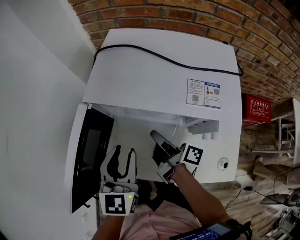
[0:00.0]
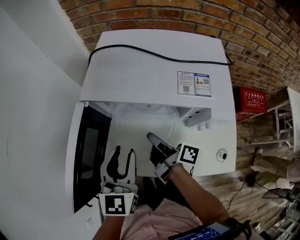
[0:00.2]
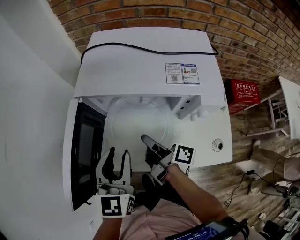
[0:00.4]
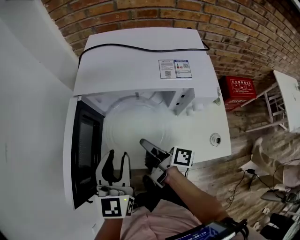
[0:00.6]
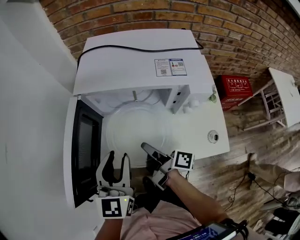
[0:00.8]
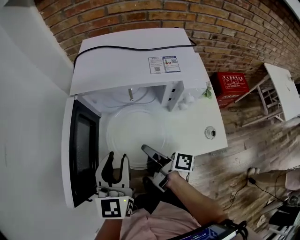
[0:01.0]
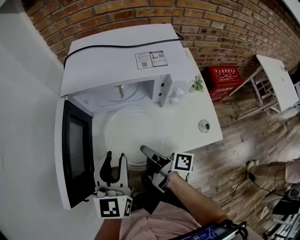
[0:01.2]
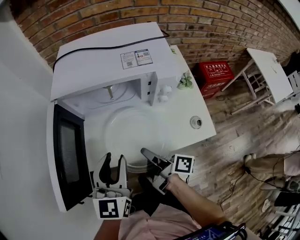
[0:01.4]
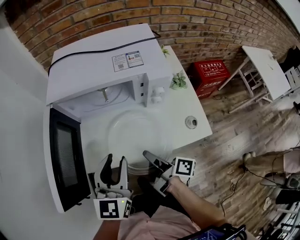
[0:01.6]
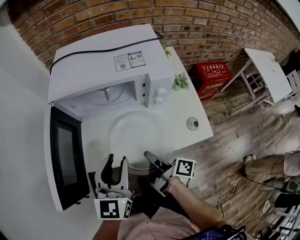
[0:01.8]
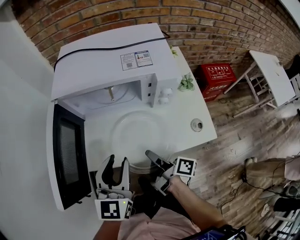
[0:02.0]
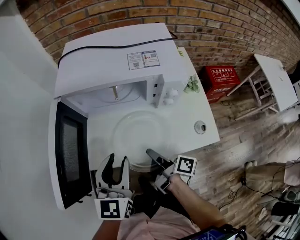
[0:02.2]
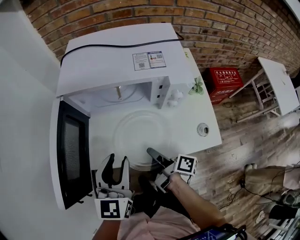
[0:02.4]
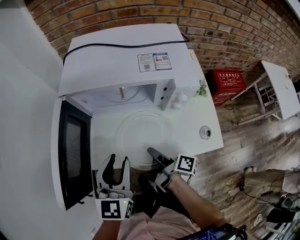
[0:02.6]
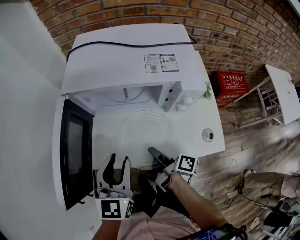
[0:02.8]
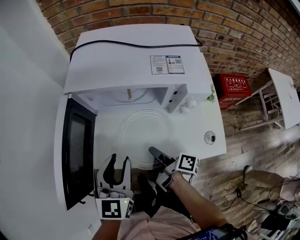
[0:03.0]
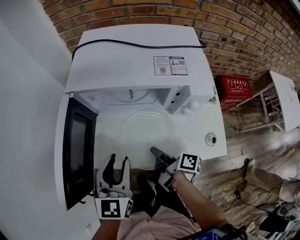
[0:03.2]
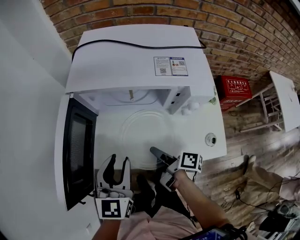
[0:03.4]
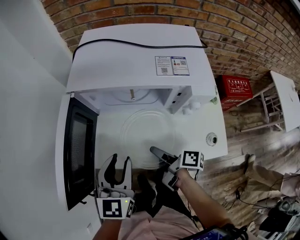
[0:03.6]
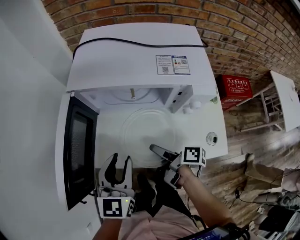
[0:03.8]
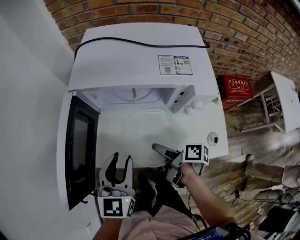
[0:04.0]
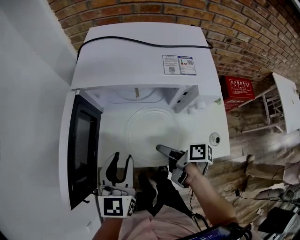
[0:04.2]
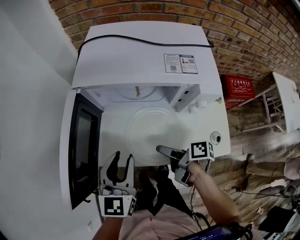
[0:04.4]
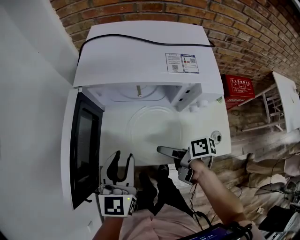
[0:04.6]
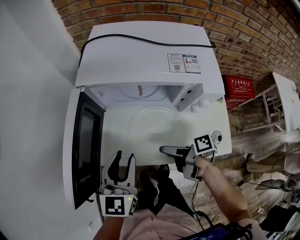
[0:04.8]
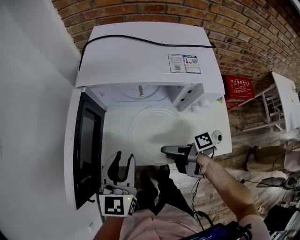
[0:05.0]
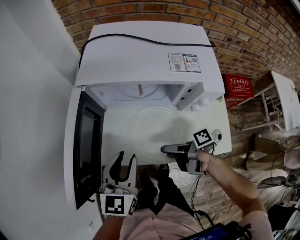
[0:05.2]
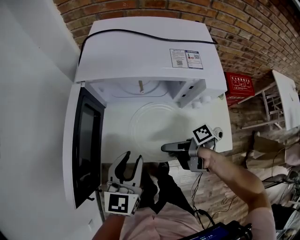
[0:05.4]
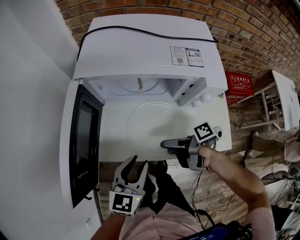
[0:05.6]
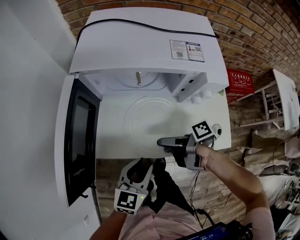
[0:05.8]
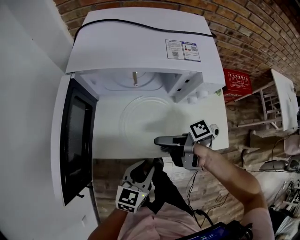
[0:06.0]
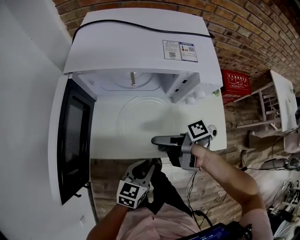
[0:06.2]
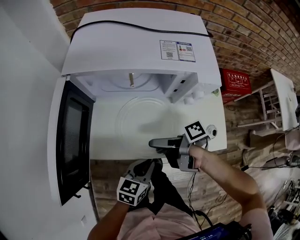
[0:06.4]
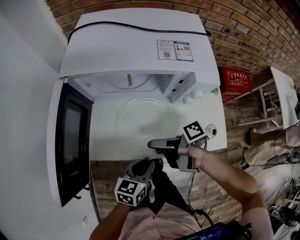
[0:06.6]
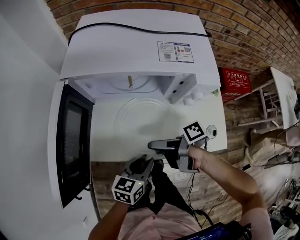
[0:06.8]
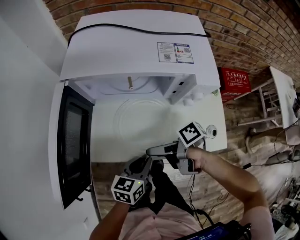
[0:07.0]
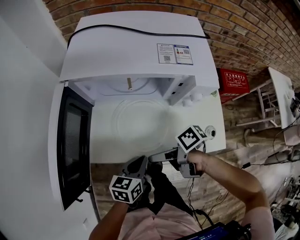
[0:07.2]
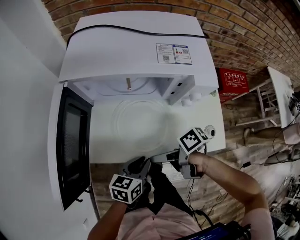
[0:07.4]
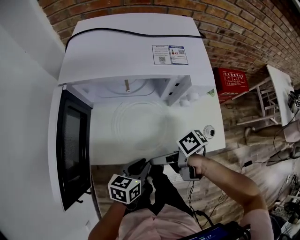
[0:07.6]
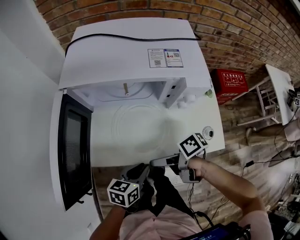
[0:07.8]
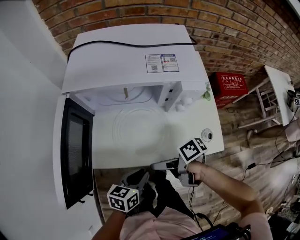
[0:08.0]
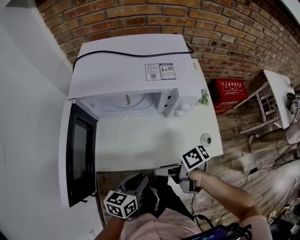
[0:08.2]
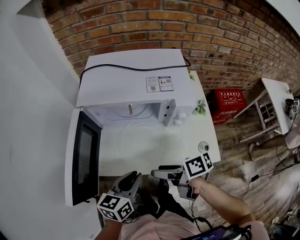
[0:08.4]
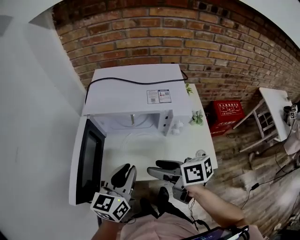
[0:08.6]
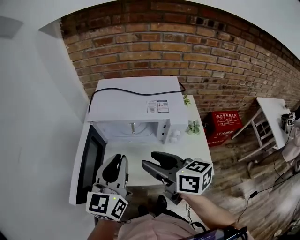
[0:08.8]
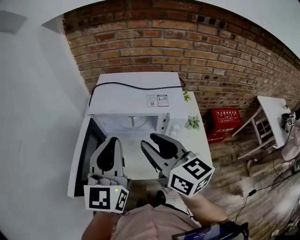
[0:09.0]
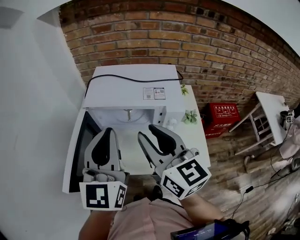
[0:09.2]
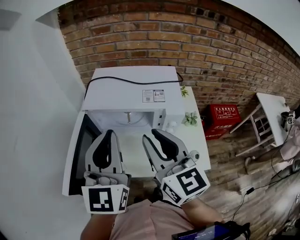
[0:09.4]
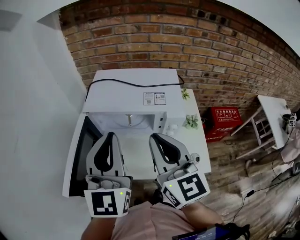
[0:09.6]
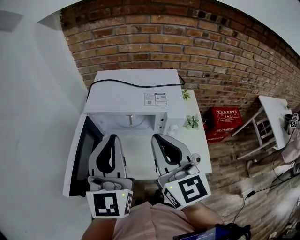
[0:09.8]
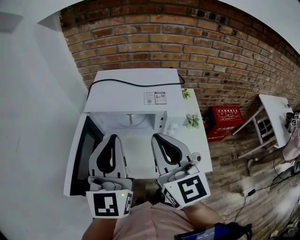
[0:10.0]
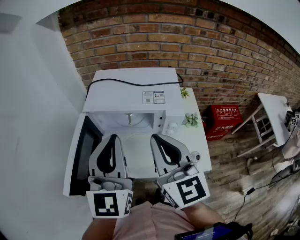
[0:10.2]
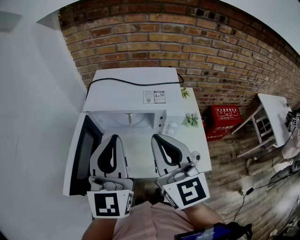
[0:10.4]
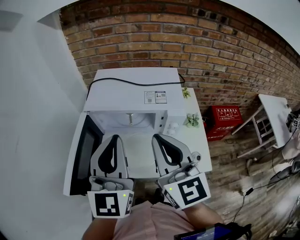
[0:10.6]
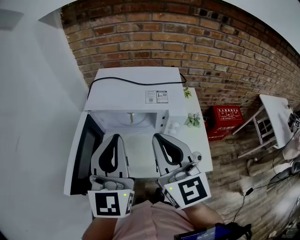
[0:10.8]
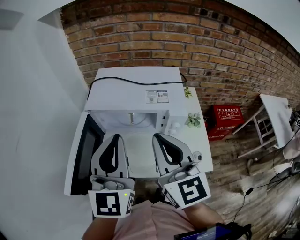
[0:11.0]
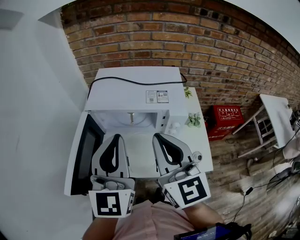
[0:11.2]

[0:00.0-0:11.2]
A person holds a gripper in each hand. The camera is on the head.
0:00.0 to 0:01.6: The right gripper moves backward, some 20 cm. The left gripper heads backward and to the right, covering roughly 15 cm, and turns by approximately 20 degrees.
0:01.6 to 0:03.2: The right gripper goes some 5 cm forward. The left gripper shifts by approximately 5 cm.
0:03.2 to 0:04.8: The right gripper changes its angle by roughly 30 degrees, and opens its fingers.
0:04.8 to 0:06.4: The left gripper travels downward, backward and to the right by roughly 20 cm, swivels about 40 degrees, and closes its fingers.
0:08.0 to 0:09.6: The two grippers go approximately 35 cm upward. The left gripper tilts its fingers some 40 degrees upward. The right gripper swivels about 100 degrees, and closes.
0:09.6 to 0:11.2: The grippers stay close to where they were, moving slightly.

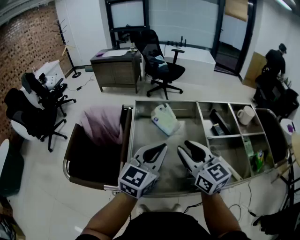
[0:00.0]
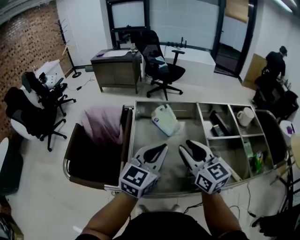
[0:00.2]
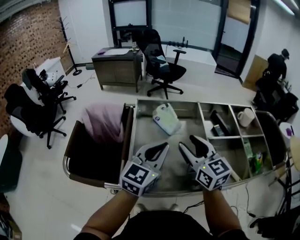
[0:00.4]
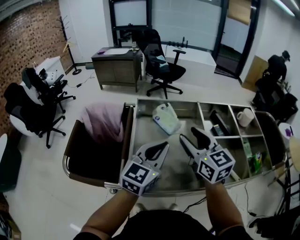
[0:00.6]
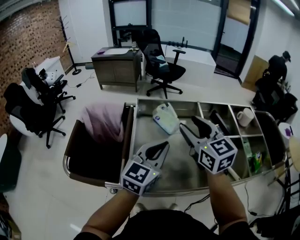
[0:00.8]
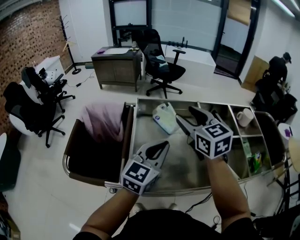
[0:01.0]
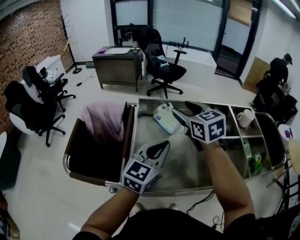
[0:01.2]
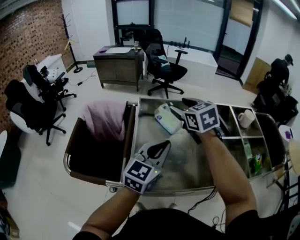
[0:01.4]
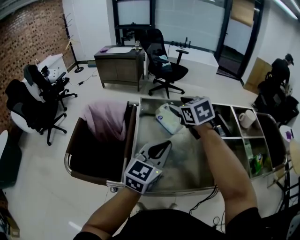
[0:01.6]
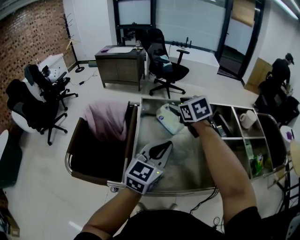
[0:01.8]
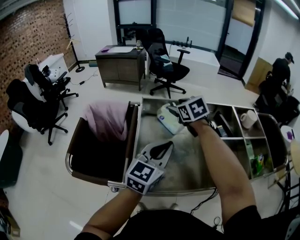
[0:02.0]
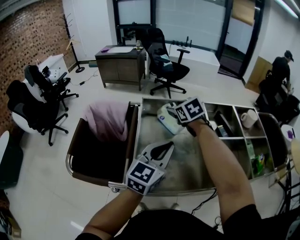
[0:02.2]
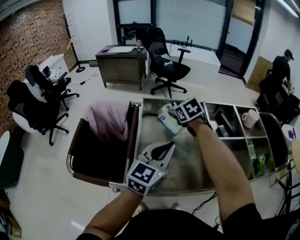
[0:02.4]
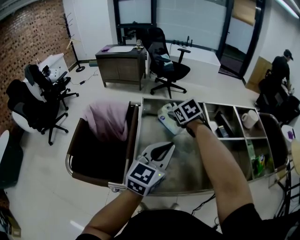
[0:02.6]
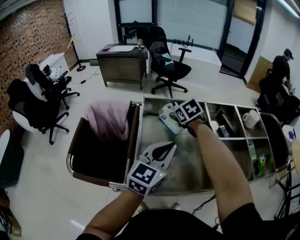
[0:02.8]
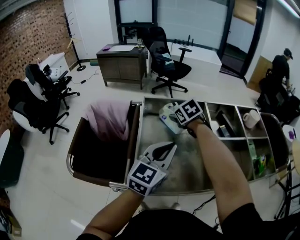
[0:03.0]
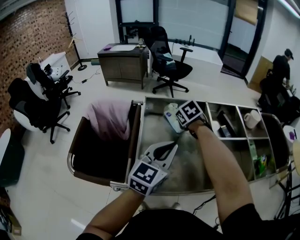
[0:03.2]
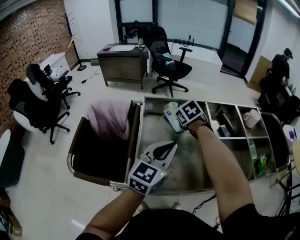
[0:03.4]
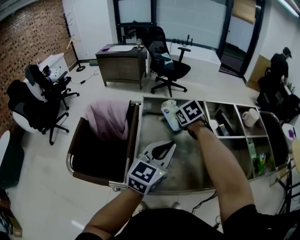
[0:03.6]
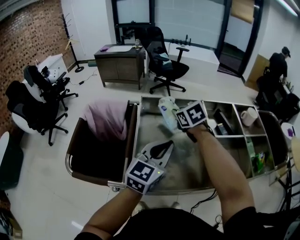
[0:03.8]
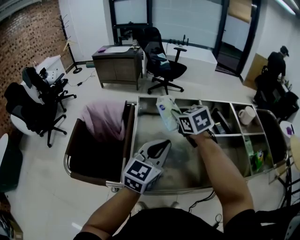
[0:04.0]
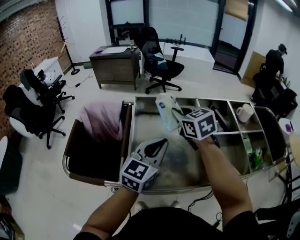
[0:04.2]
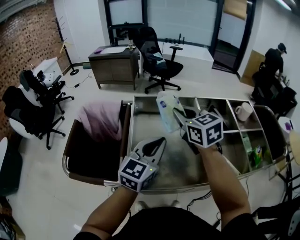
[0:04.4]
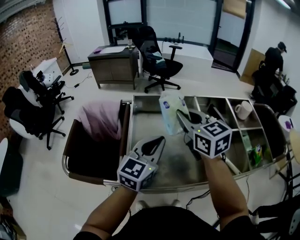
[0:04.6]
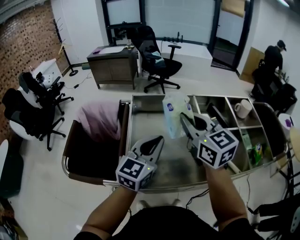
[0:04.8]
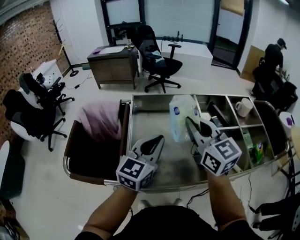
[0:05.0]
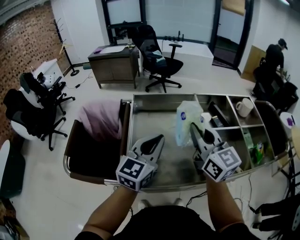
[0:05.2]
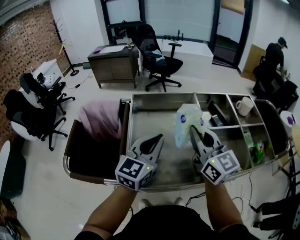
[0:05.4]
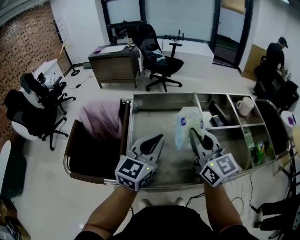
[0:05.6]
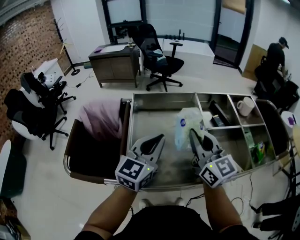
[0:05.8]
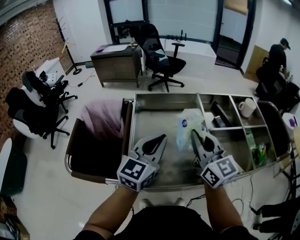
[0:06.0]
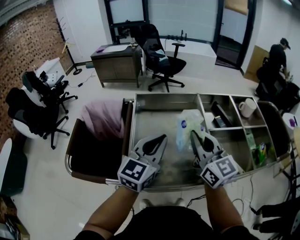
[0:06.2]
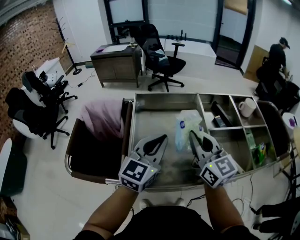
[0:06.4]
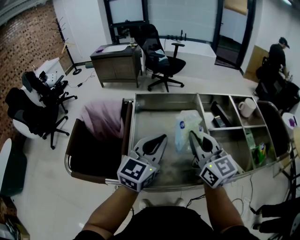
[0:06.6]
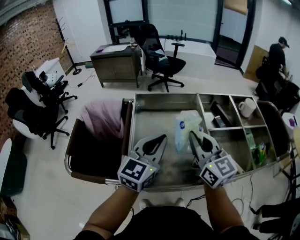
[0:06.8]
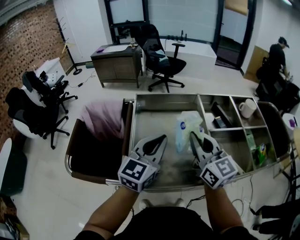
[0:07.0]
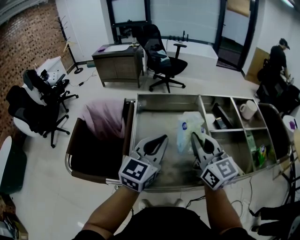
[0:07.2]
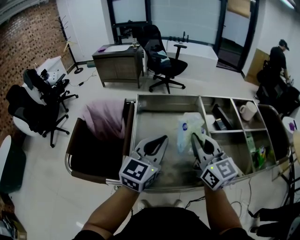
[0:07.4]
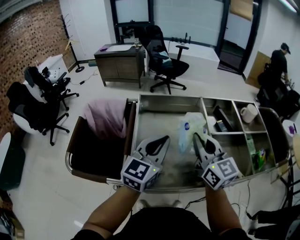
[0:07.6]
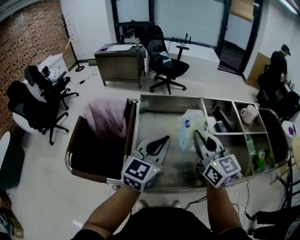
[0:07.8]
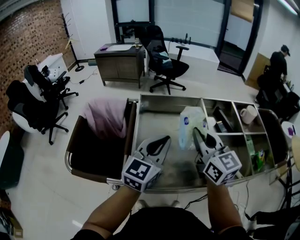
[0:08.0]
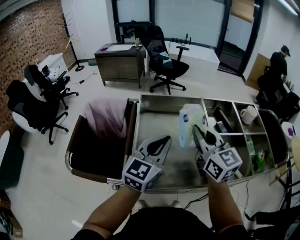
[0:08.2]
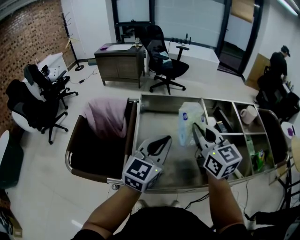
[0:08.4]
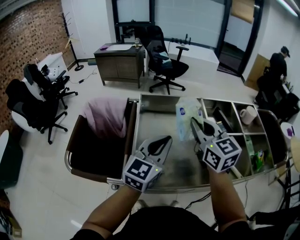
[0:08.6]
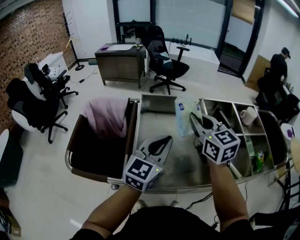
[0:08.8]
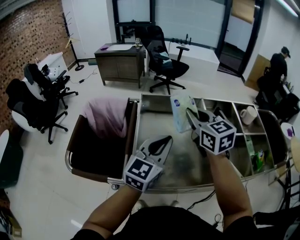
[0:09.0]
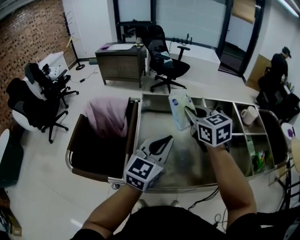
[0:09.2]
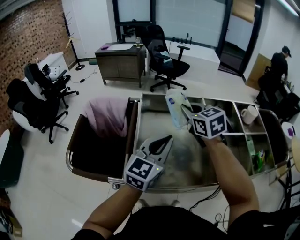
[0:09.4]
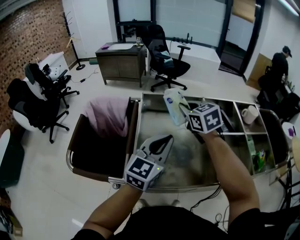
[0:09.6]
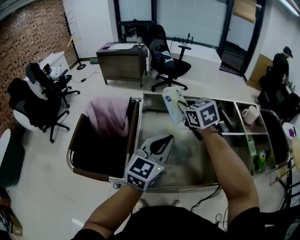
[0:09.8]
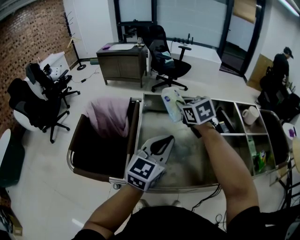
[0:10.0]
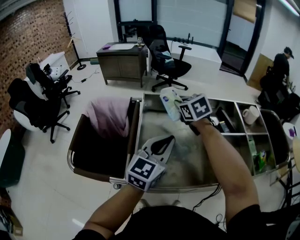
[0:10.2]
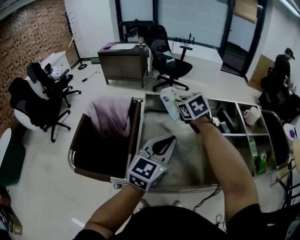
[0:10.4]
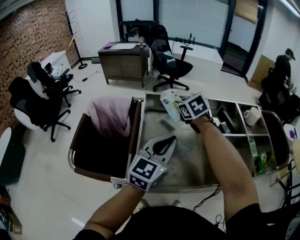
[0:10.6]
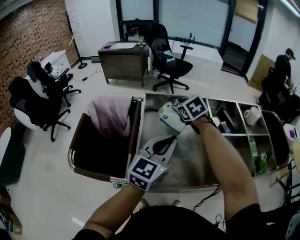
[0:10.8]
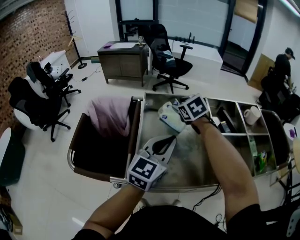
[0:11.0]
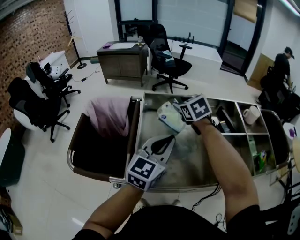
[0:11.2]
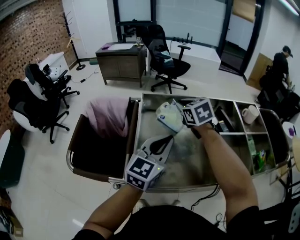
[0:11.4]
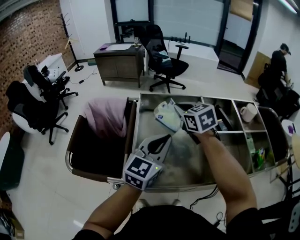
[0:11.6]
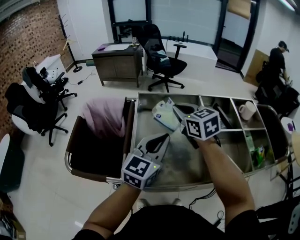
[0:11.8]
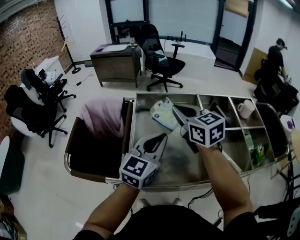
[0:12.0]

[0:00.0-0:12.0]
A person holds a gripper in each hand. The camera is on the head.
0:00.0 to 0:01.6: The right gripper goes roughly 20 cm forward, rotates roughly 30 degrees, and opens.
0:01.6 to 0:03.0: The right gripper shifts approximately 10 cm downward.
0:03.0 to 0:04.4: The right gripper travels upward and backward by approximately 20 cm, tilts its fingers about 30 degrees upward, and closes its fingers.
0:04.4 to 0:06.0: The right gripper shifts about 10 cm backward and to the right, and turns by roughly 20 degrees.
0:06.0 to 0:07.6: Both grippers stay put.
0:07.6 to 0:09.0: The right gripper heads forward, covering approximately 10 cm.
0:09.0 to 0:10.4: The right gripper travels forward, downward and to the left by about 15 cm, and changes its angle by roughly 20 degrees.
0:10.4 to 0:12.0: The right gripper shifts about 10 cm backward and upward, swivels roughly 30 degrees, and opens and closes again.

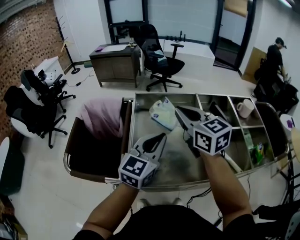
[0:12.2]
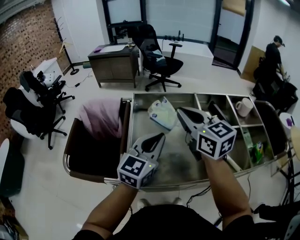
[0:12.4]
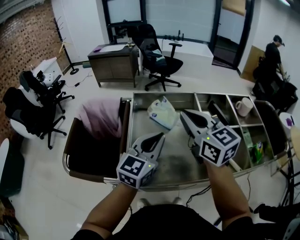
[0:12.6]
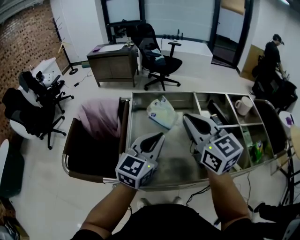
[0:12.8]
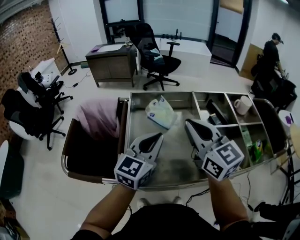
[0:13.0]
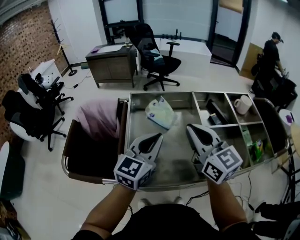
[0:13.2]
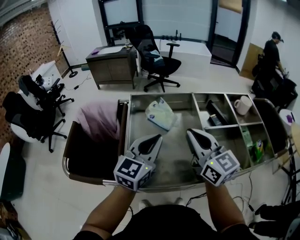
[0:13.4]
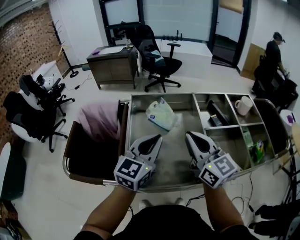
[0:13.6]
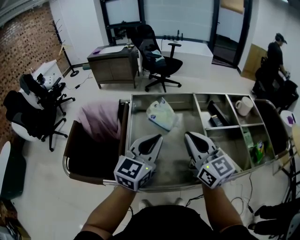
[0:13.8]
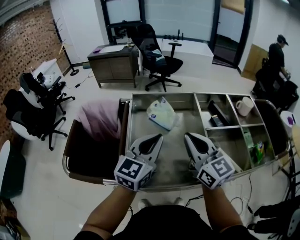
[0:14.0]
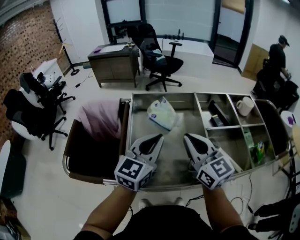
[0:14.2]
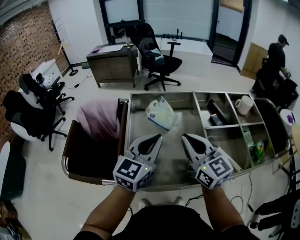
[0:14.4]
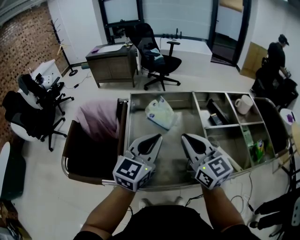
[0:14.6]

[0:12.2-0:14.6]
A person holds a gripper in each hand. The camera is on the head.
0:12.2 to 0:13.4: The right gripper heads backward and to the right, covering approximately 10 cm.
0:13.4 to 0:14.6: There are only small adjustments of the grippers.
